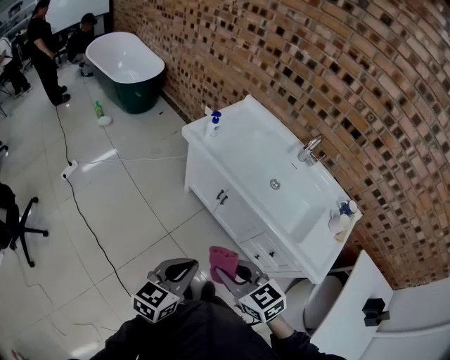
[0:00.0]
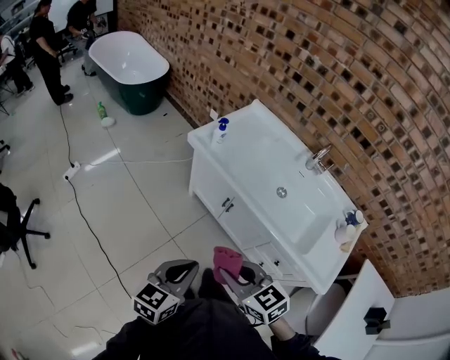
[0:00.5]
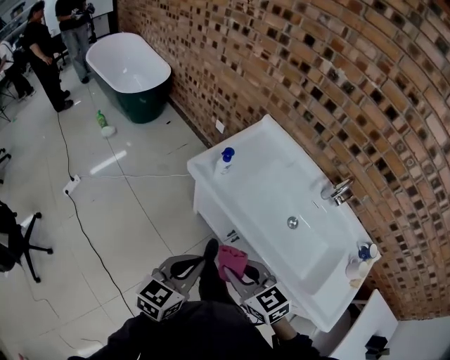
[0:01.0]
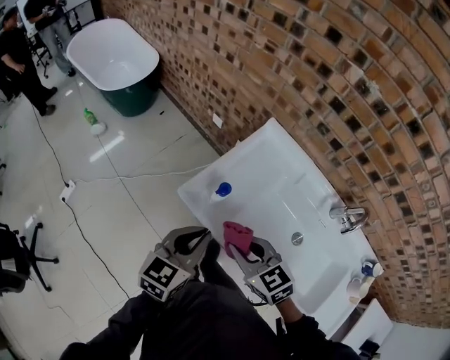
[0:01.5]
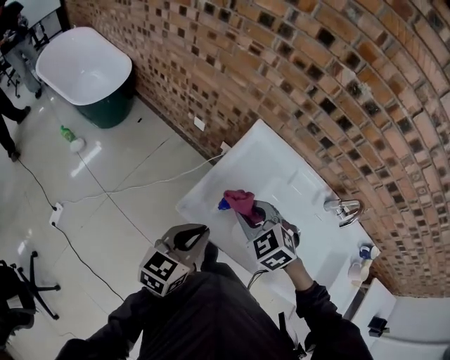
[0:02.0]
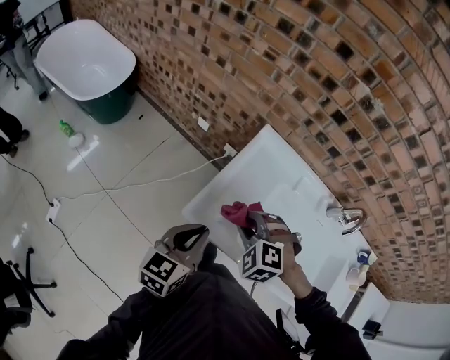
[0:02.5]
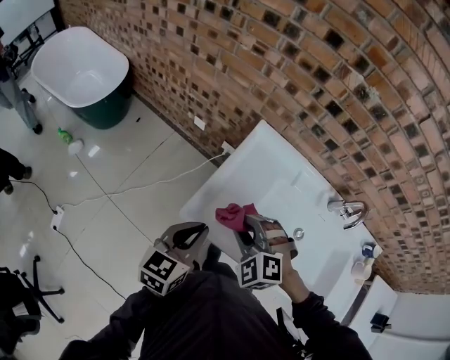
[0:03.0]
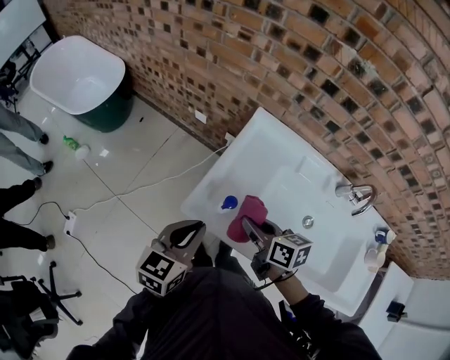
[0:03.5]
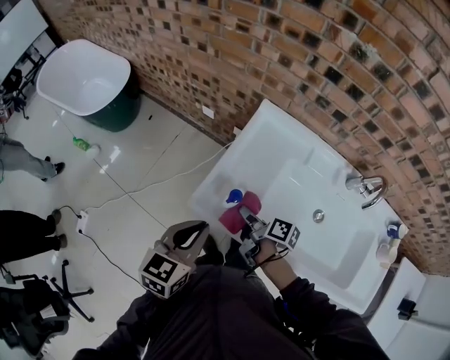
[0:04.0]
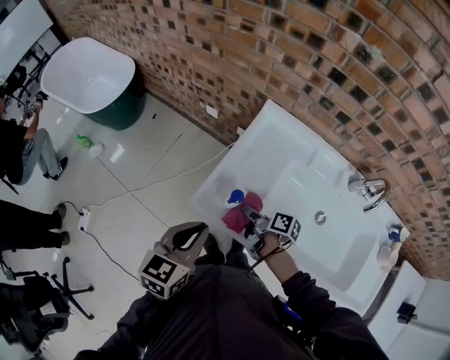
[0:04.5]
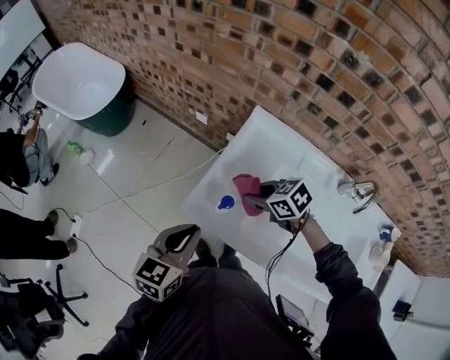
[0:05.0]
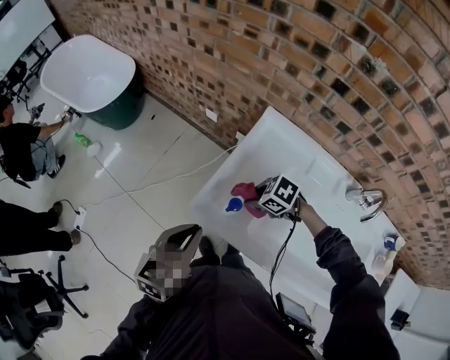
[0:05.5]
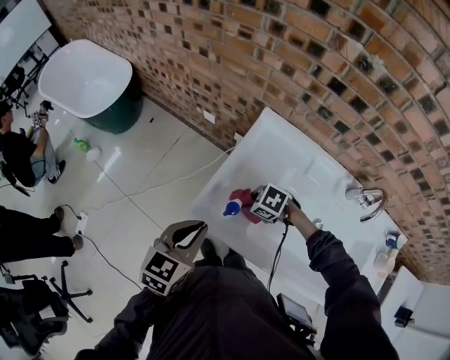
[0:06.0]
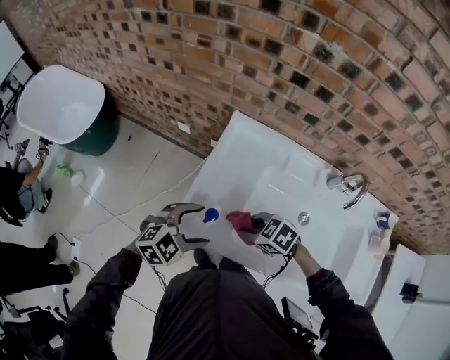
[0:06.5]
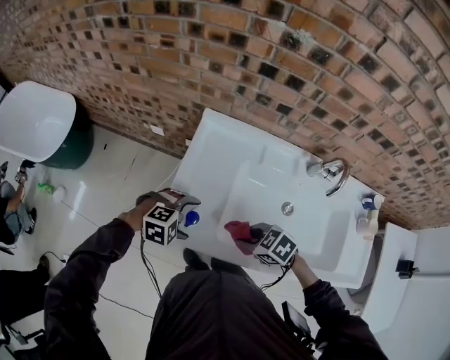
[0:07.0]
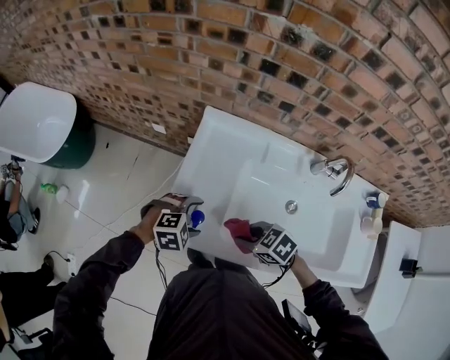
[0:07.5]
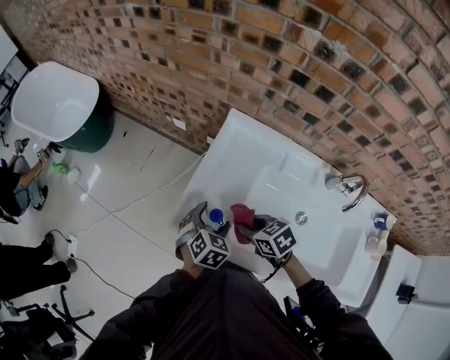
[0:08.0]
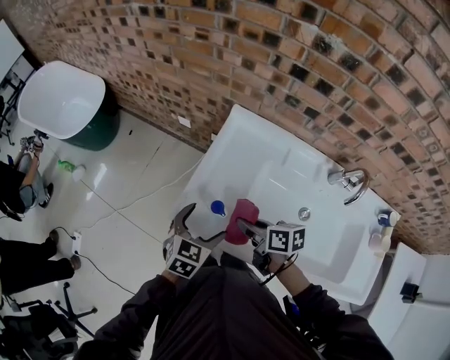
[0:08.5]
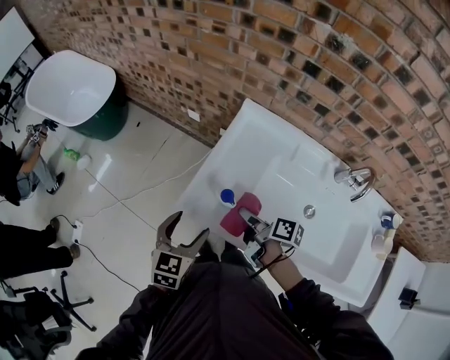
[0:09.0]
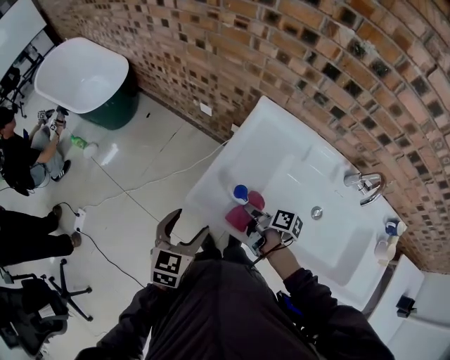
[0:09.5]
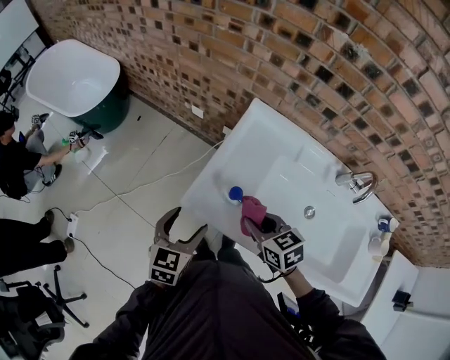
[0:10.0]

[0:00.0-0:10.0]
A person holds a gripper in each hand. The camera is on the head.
0:00.0 to 0:02.0: Both grippers are carried forward, about 50 cm. The right gripper swivels some 30 degrees.
0:02.0 to 0:04.0: The right gripper heads downward, covering approximately 15 cm, and twists roughly 110 degrees clockwise, seen from behind.
0:04.0 to 0:06.0: The right gripper shifts by about 5 cm, and rolls counterclockwise, seen from behind, by roughly 80 degrees.
0:06.0 to 0:08.0: The right gripper rotates some 40 degrees; the left gripper travels downward by roughly 15 cm, rotates roughly 30 degrees, and opens its fingers.
0:08.0 to 0:10.0: The right gripper heads upward, covering some 5 cm; the left gripper heads to the left, upward and backward, covering some 15 cm, and swivels some 30 degrees.

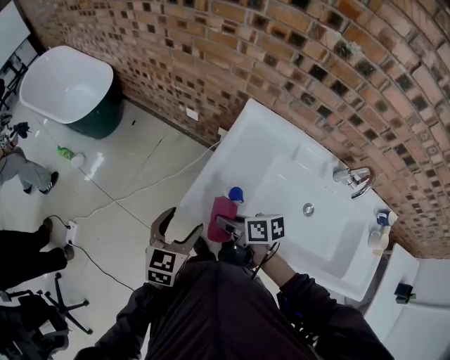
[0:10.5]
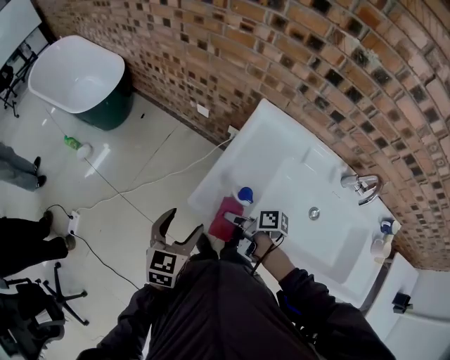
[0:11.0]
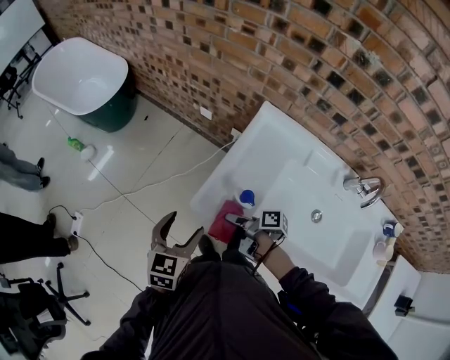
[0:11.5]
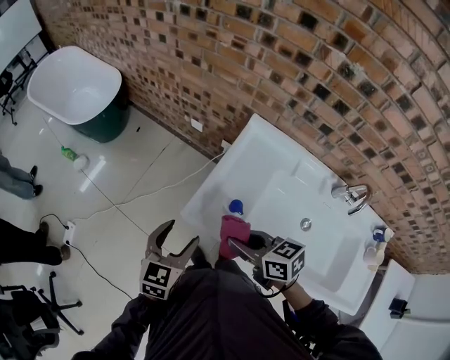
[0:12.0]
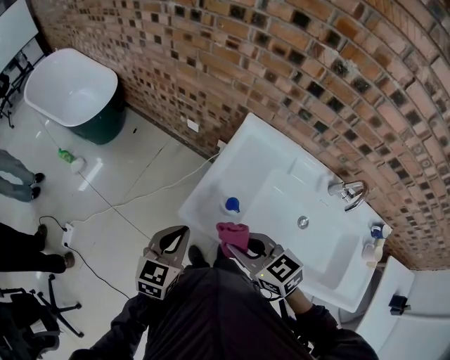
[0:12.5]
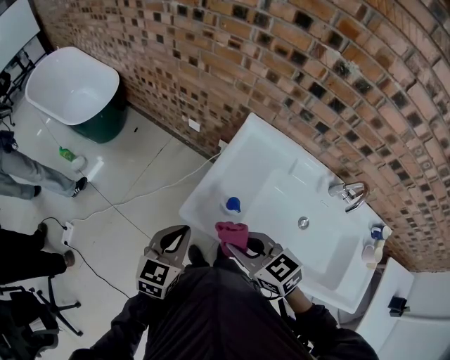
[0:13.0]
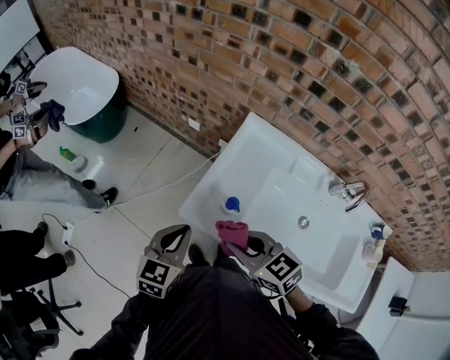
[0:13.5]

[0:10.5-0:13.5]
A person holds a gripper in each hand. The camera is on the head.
0:10.5 to 0:12.0: The right gripper shifts approximately 10 cm upward, and turns by roughly 30 degrees.
0:12.0 to 0:13.5: The left gripper closes its fingers, while the right gripper turns by roughly 20 degrees.

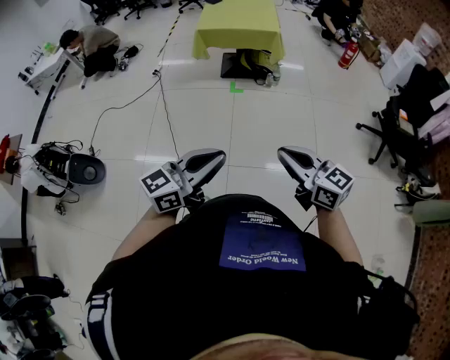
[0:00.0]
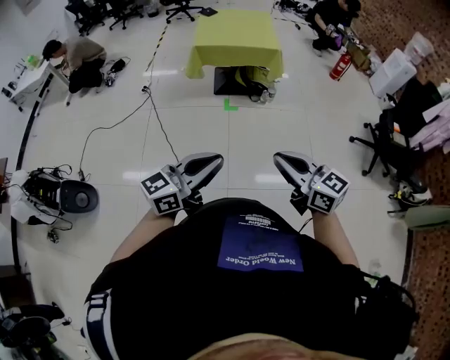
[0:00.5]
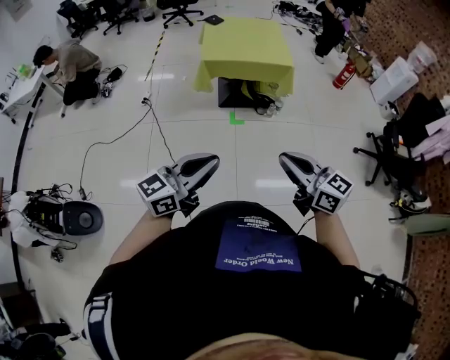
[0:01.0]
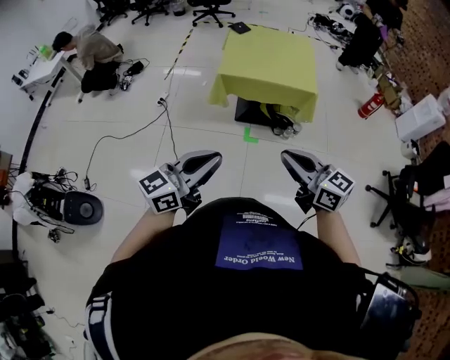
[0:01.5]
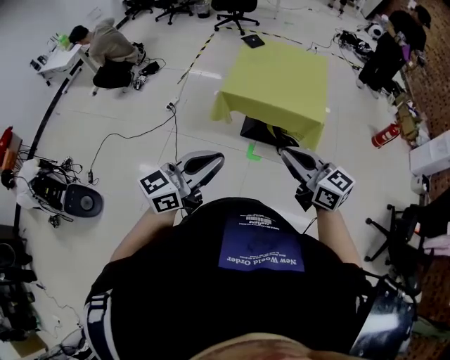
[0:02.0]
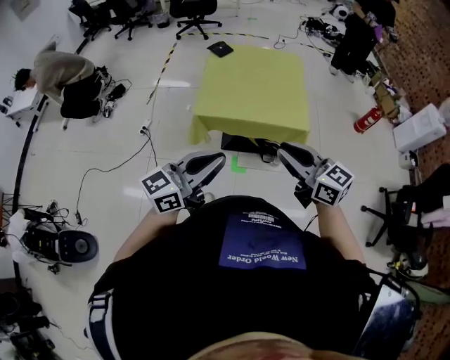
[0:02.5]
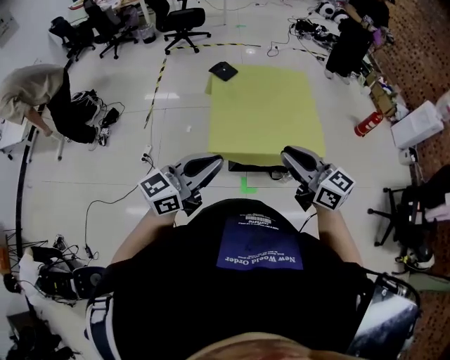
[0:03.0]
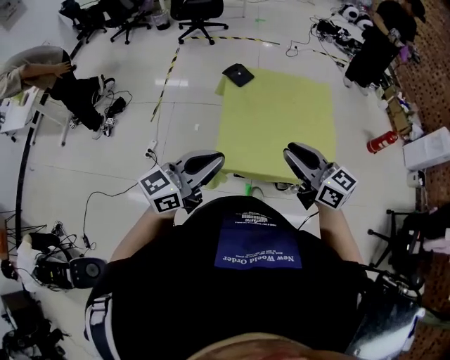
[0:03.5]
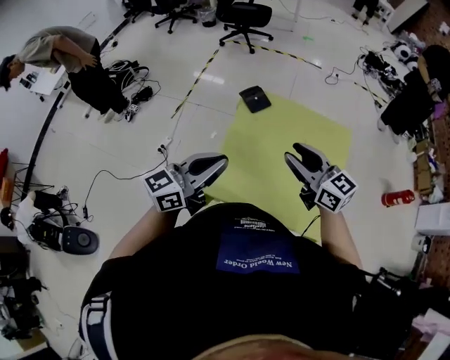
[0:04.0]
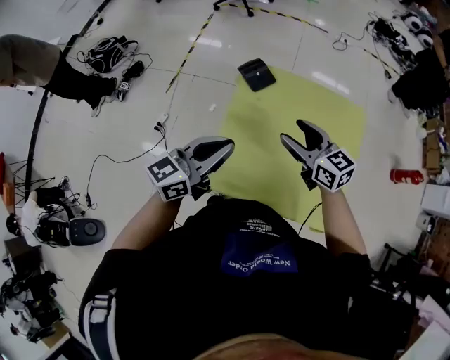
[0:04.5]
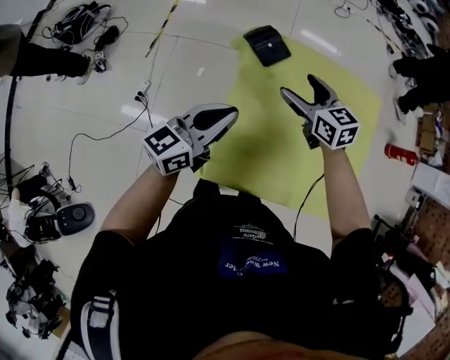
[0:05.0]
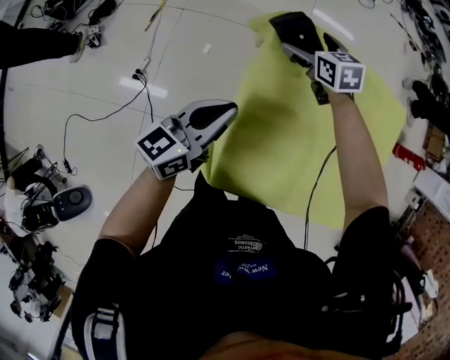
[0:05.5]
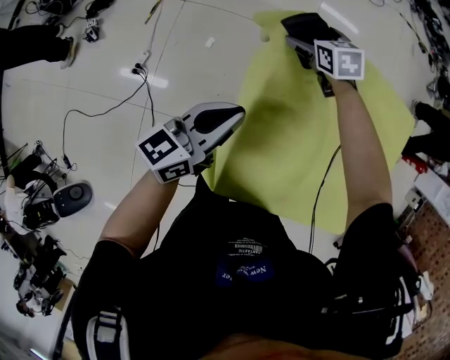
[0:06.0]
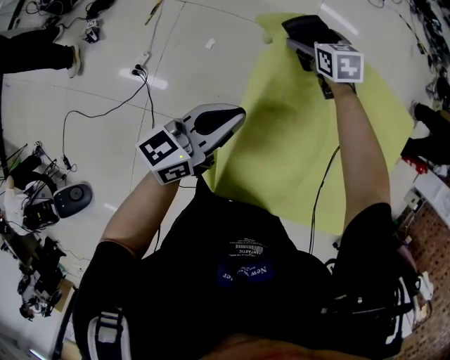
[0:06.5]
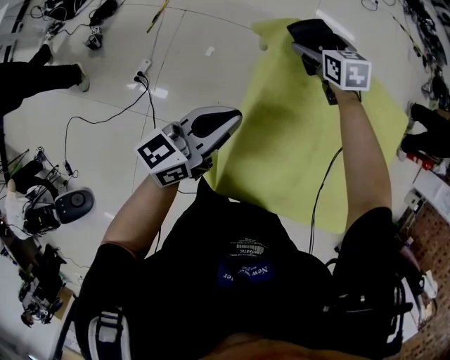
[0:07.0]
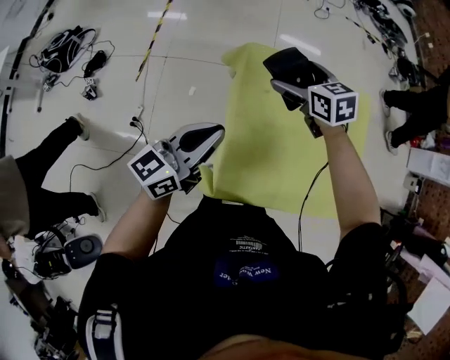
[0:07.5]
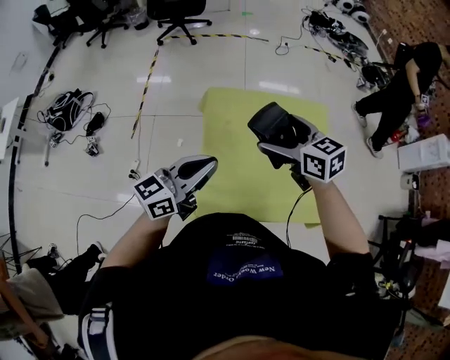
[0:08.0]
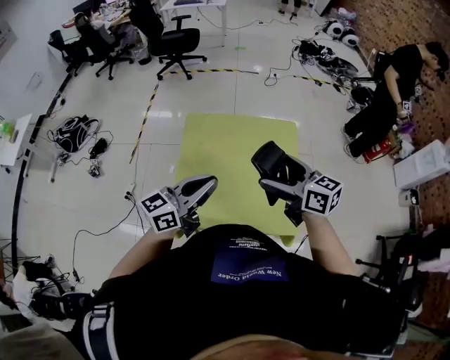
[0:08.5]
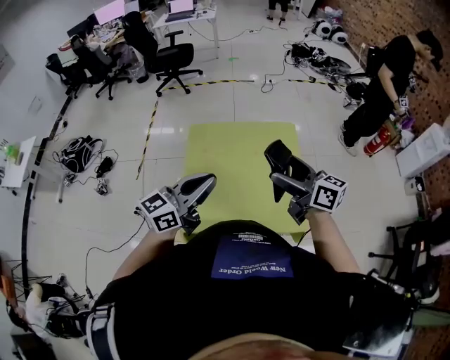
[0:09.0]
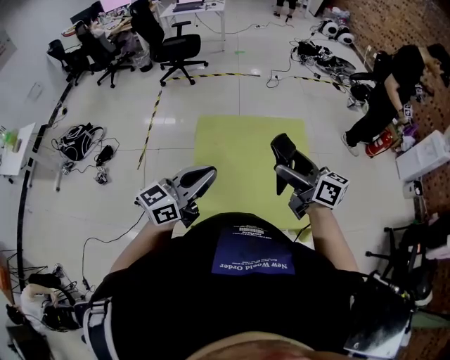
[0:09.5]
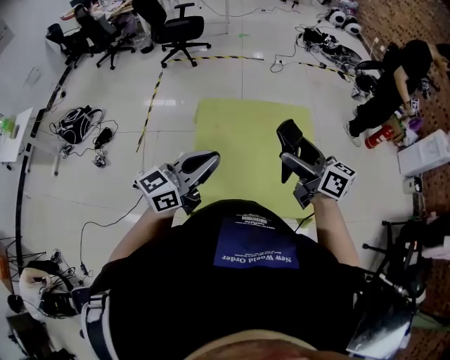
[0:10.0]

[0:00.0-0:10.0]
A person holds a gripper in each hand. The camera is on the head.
0:00.0 to 0:02.0: Both grippers are carried forward, approximately 60 cm.
0:02.0 to 0:04.0: The pair of grippers is taken forward, about 60 cm.
0:04.0 to 0:06.0: The right gripper is displaced forward, downward and to the left by some 60 cm, tips its fingers downward by about 50 degrees, and opens up. Meanwhile the left gripper travels downward, forward and to the left by roughly 35 cm.
0:06.0 to 0:08.0: The right gripper travels upward, backward and to the right by about 50 cm, and changes its angle by some 30 degrees, while the left gripper travels upward, backward and to the right by some 25 cm, and swivels some 20 degrees.
0:08.0 to 0:10.0: The right gripper travels to the right, backward and upward by approximately 20 cm, and swivels some 30 degrees, while the left gripper goes roughly 10 cm to the right, upward and backward.

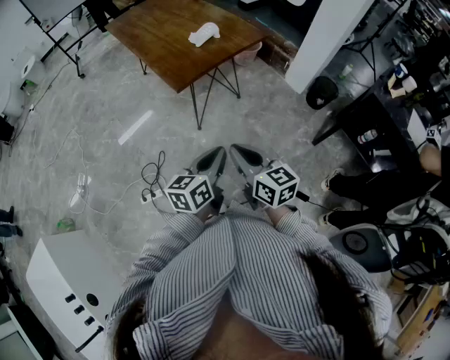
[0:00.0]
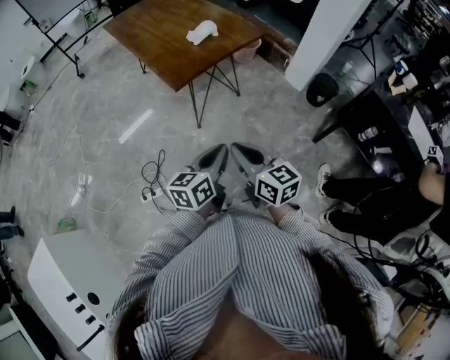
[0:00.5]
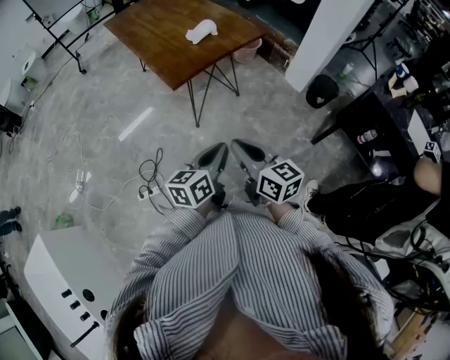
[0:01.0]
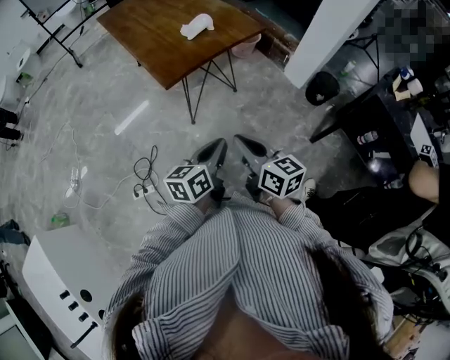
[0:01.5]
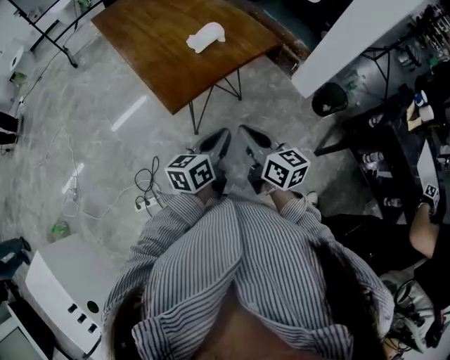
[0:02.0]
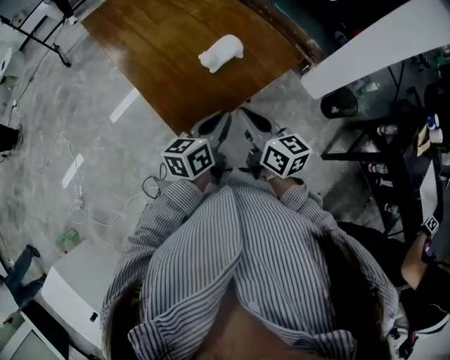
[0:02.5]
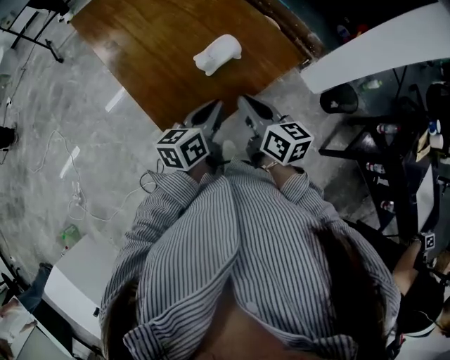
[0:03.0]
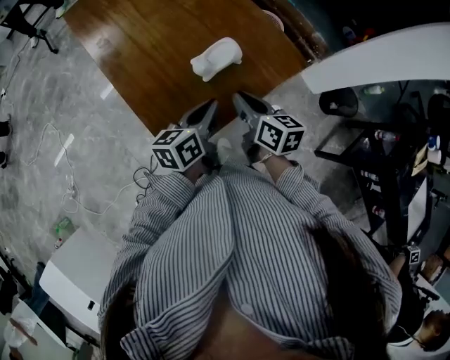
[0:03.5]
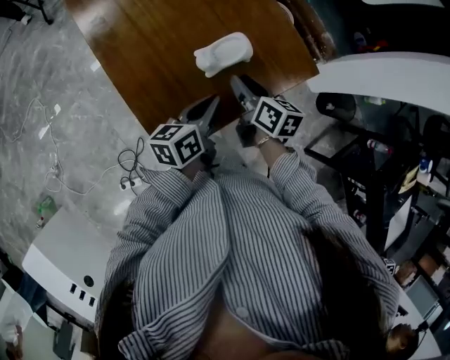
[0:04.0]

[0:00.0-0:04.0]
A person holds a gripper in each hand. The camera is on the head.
0:00.0 to 0:02.0: The grippers both shift forward by about 20 cm.
0:02.0 to 0:04.0: The two grippers go about 35 cm forward. The right gripper turns by roughly 20 degrees, and opens.
